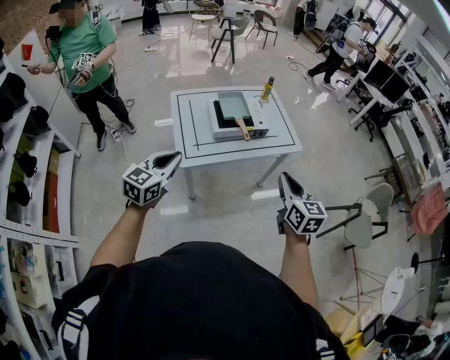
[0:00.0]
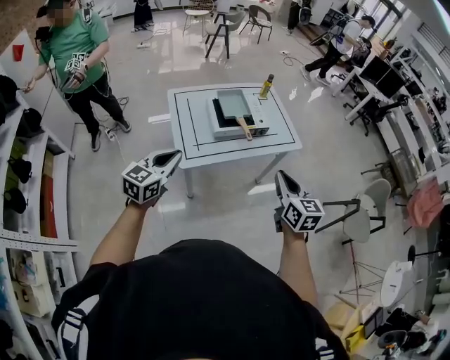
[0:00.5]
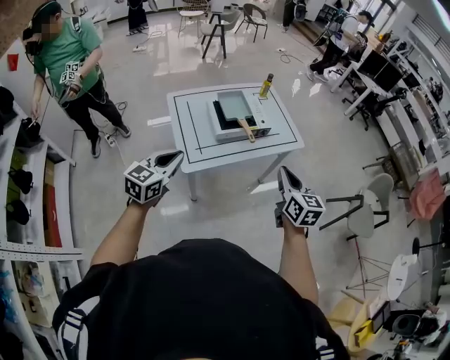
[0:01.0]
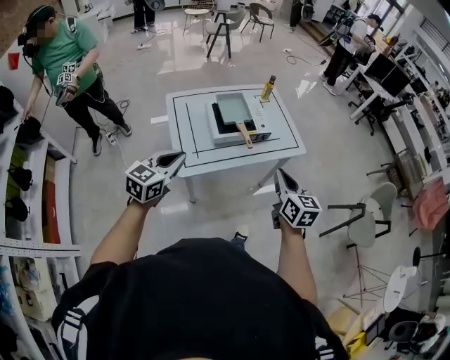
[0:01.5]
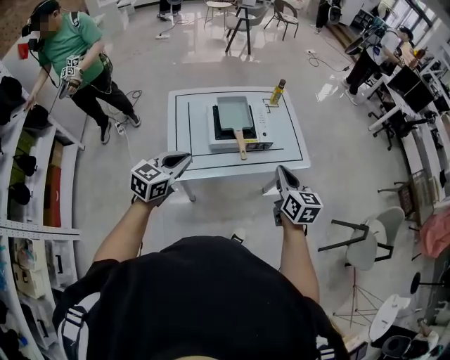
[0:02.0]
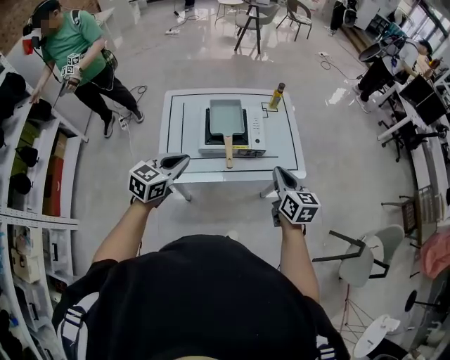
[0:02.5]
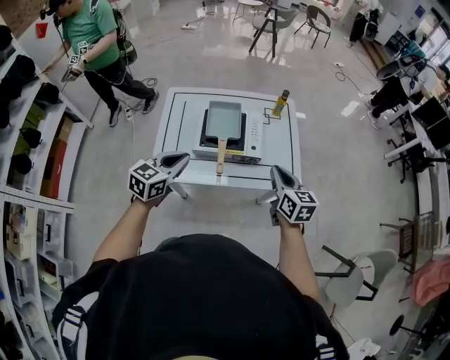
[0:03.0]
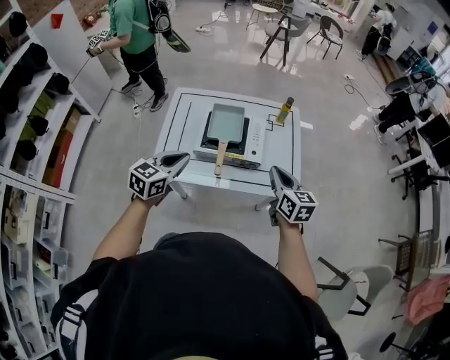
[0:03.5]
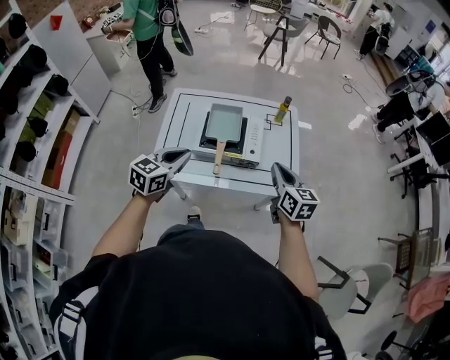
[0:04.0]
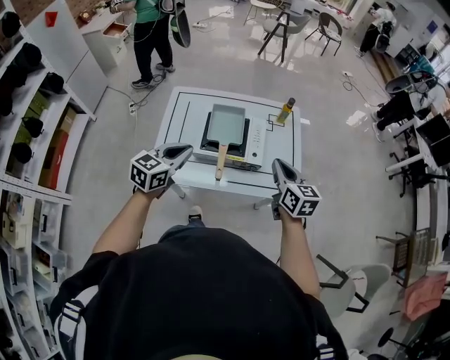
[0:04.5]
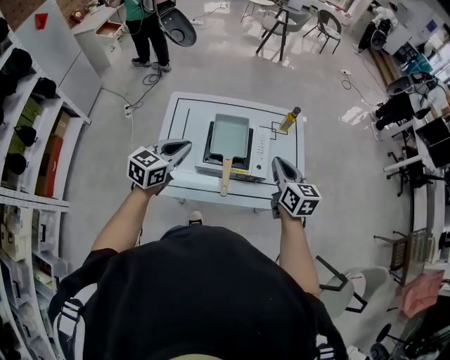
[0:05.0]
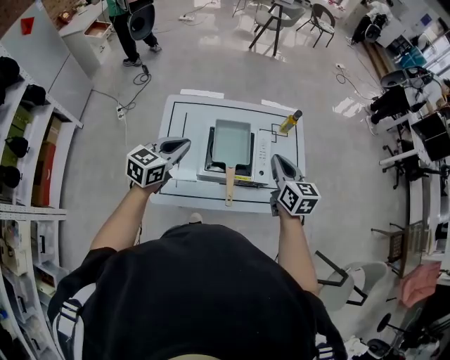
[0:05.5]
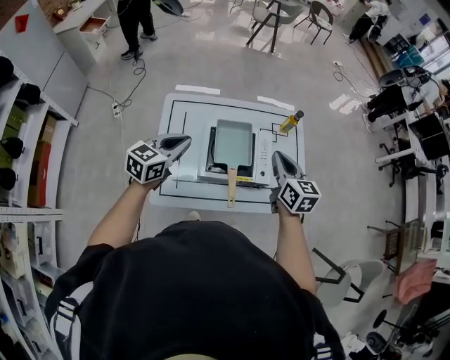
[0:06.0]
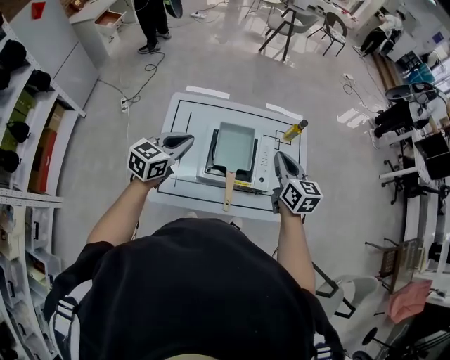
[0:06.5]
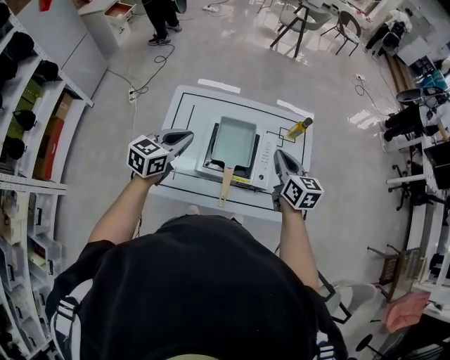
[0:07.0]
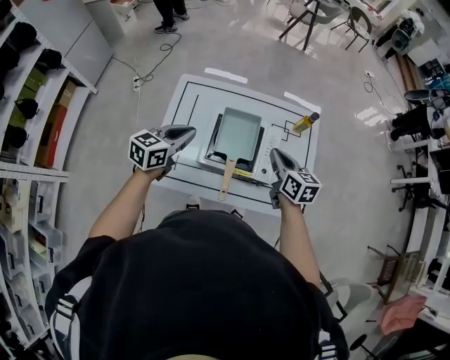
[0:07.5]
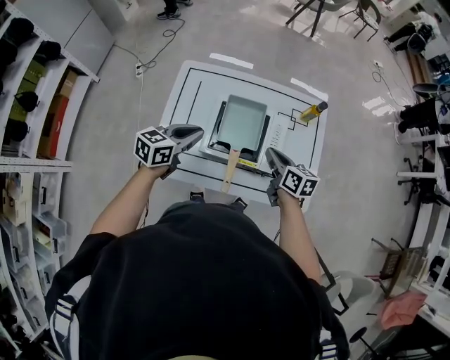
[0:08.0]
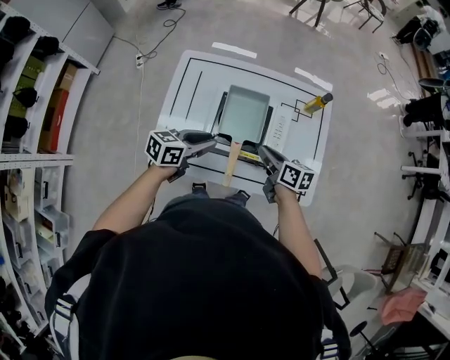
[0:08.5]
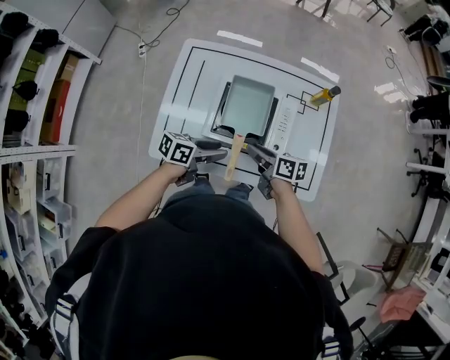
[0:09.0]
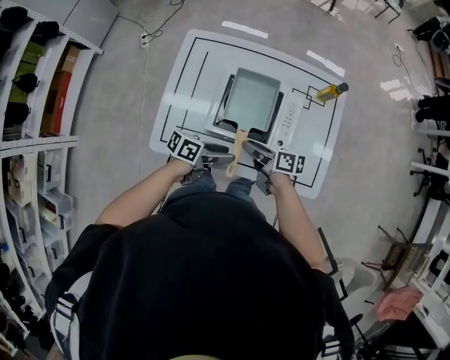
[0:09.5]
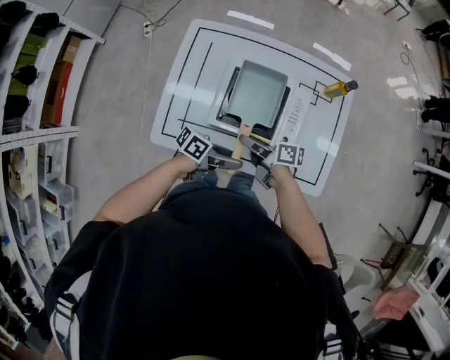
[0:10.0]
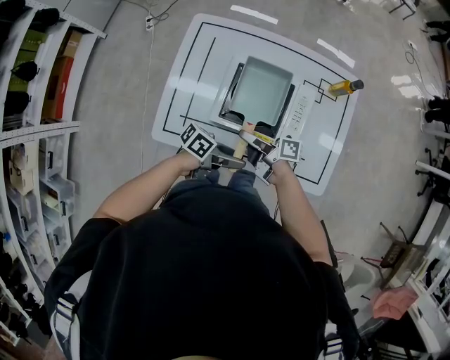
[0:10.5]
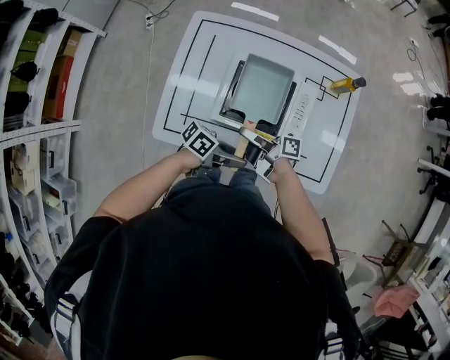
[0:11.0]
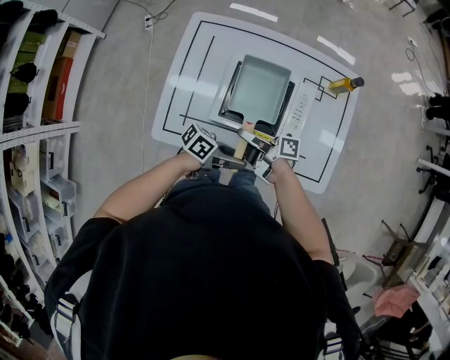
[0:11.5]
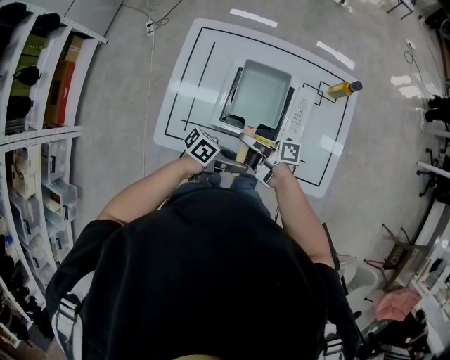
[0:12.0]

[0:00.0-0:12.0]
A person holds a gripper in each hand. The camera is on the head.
0:00.0 to 0:02.0: The grippers both shift forward by about 20 cm.
0:02.0 to 0:04.0: The left gripper goes roughly 15 cm to the right and forward; the right gripper goes roughly 15 cm forward and to the right.
0:04.0 to 0:06.0: Both grippers travel together forward and to the left, about 20 cm.
0:06.0 to 0:08.0: The right gripper moves downward, roughly 15 cm, and swivels about 30 degrees, while the left gripper shifts some 10 cm downward and to the right.
0:08.0 to 0:10.0: The left gripper changes place by approximately 25 cm, swivels roughly 50 degrees, and opens. The right gripper changes place by some 15 cm, swivels some 40 degrees, and opens.
0:10.0 to 0:12.0: The grippers stay close to where they were, moving slightly.

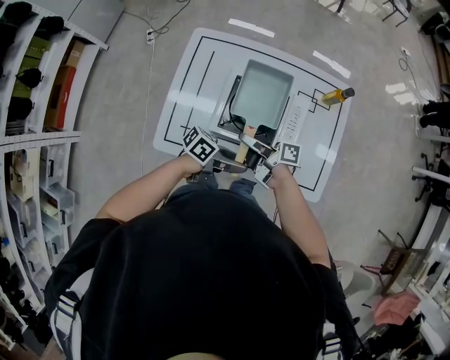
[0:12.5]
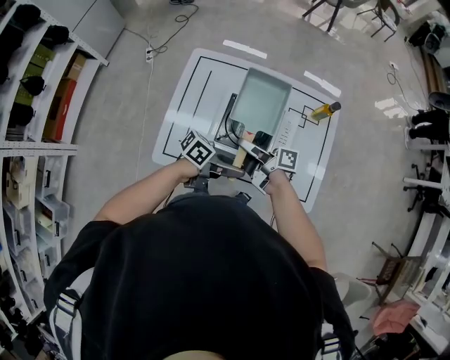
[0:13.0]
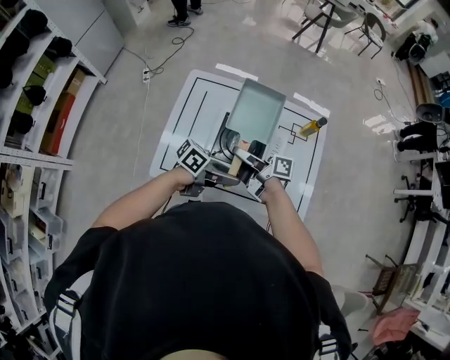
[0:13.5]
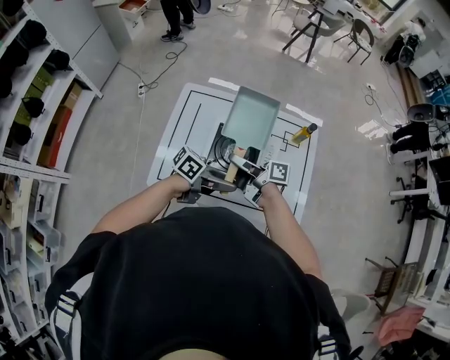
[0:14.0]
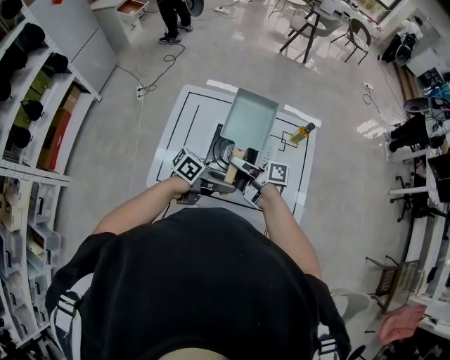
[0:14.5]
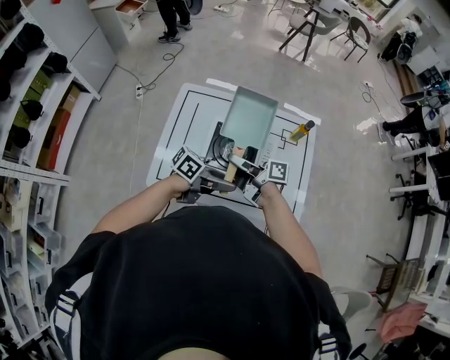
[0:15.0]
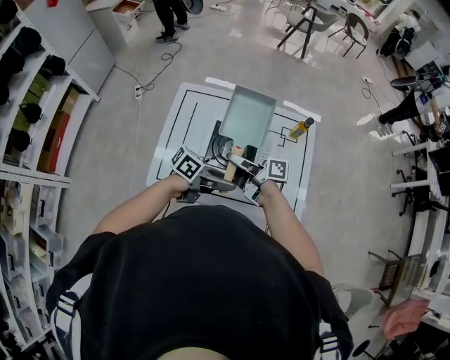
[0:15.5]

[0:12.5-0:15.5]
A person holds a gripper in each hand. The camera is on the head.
0:12.5 to 0:14.0: The grippers both shift upward by about 10 cm.
0:14.0 to 0:15.5: The grippers stay close to where they were, moving slightly.

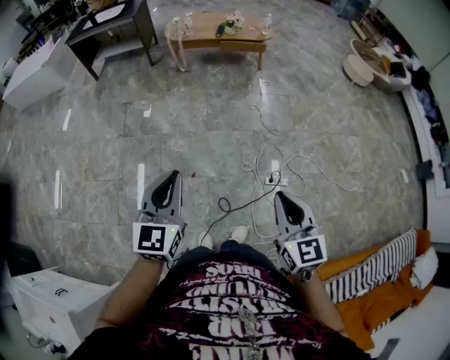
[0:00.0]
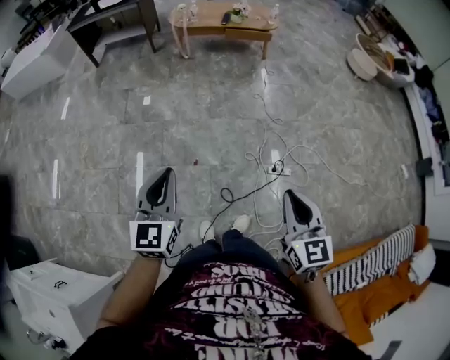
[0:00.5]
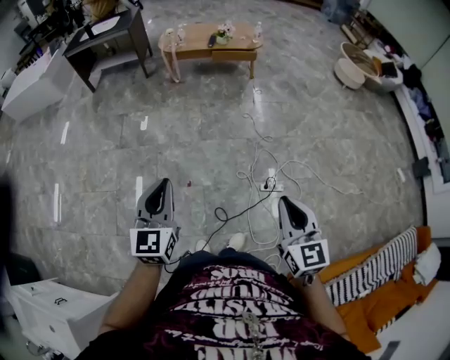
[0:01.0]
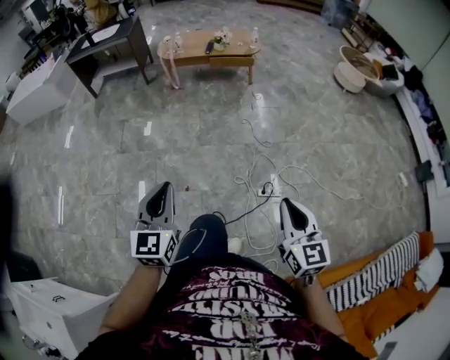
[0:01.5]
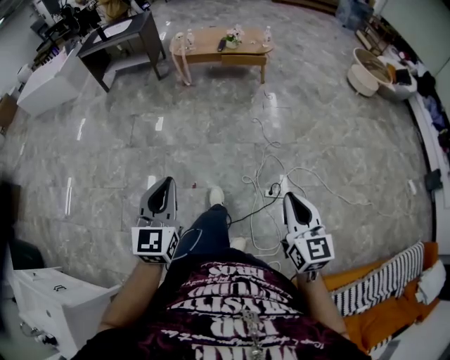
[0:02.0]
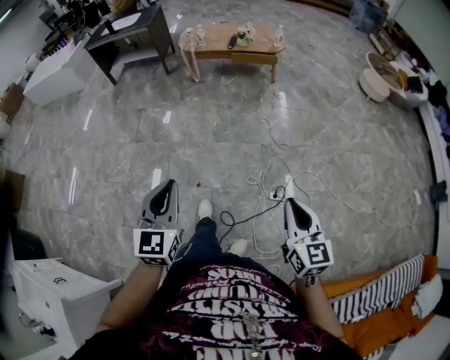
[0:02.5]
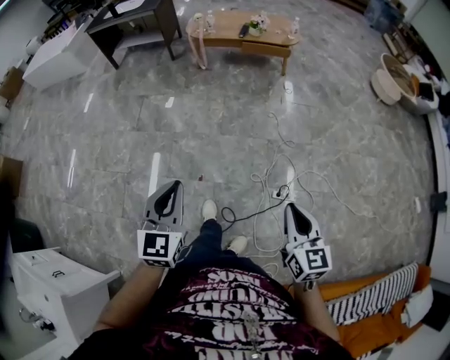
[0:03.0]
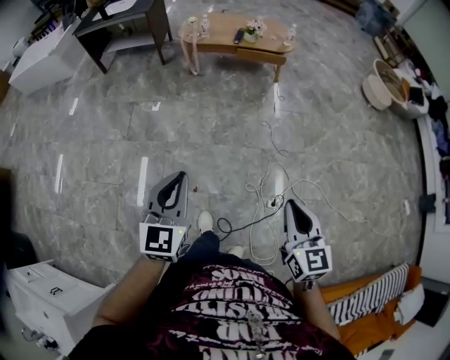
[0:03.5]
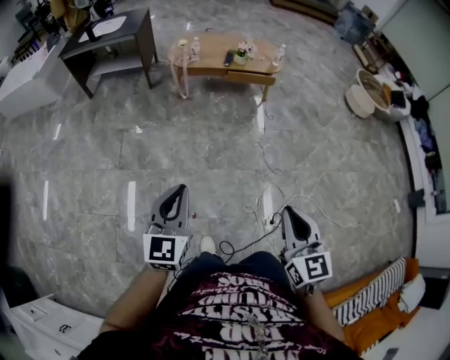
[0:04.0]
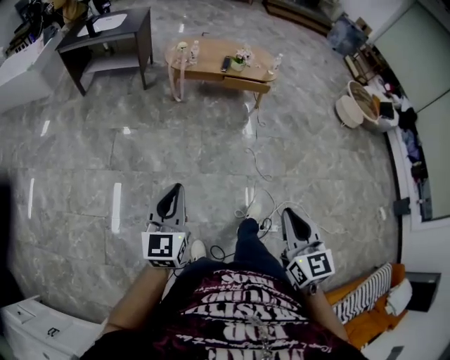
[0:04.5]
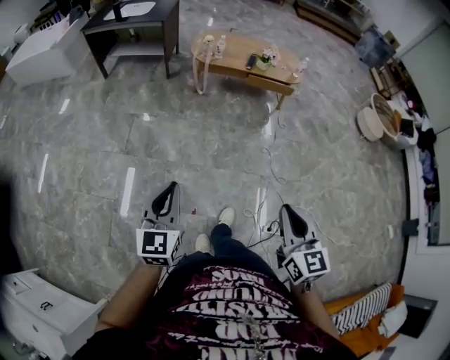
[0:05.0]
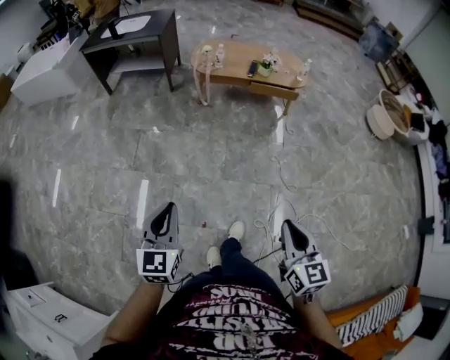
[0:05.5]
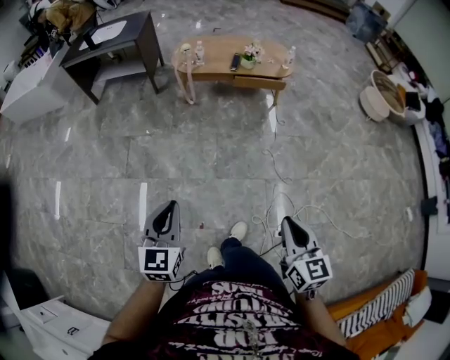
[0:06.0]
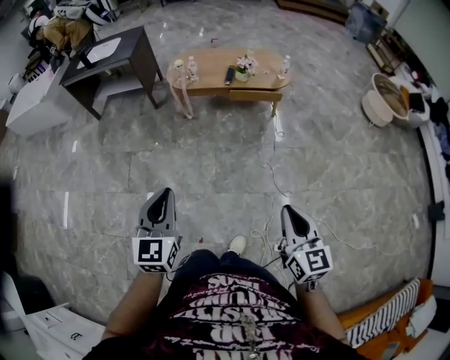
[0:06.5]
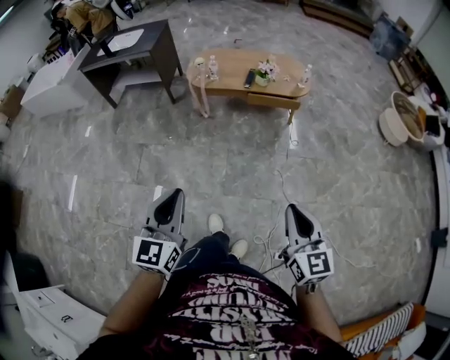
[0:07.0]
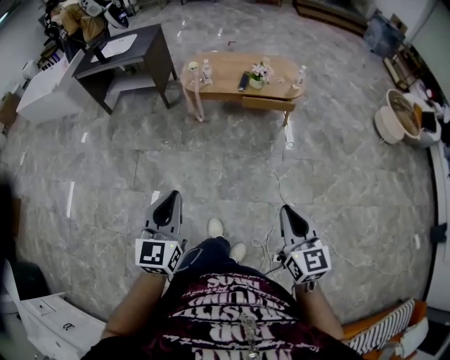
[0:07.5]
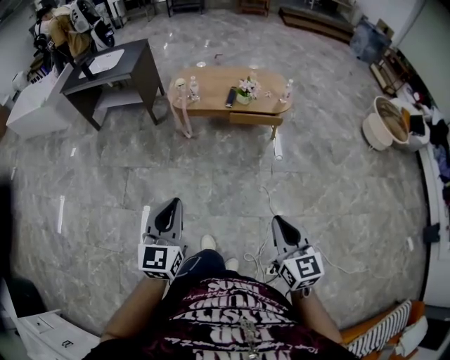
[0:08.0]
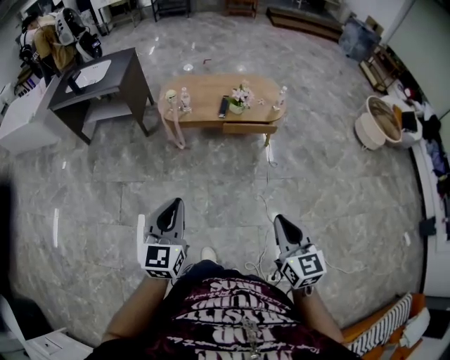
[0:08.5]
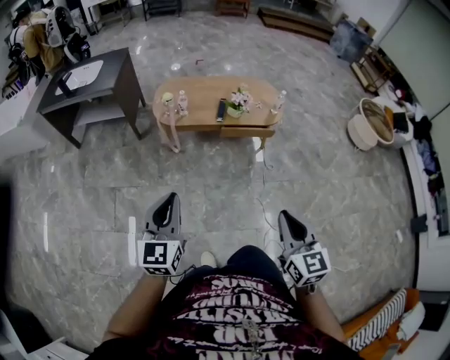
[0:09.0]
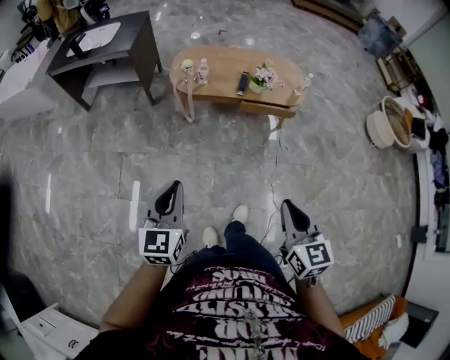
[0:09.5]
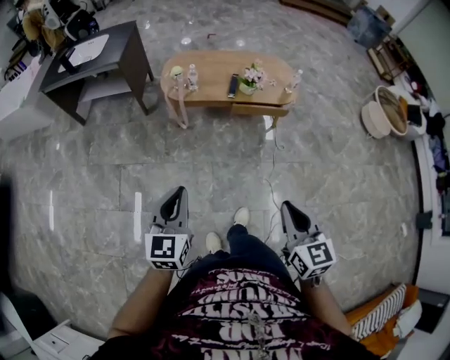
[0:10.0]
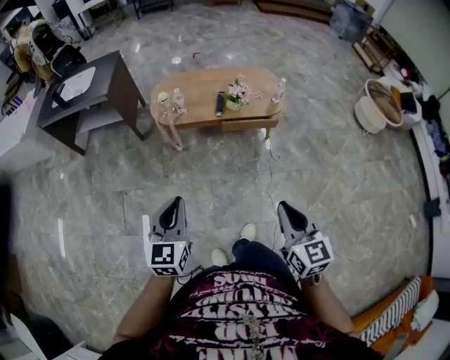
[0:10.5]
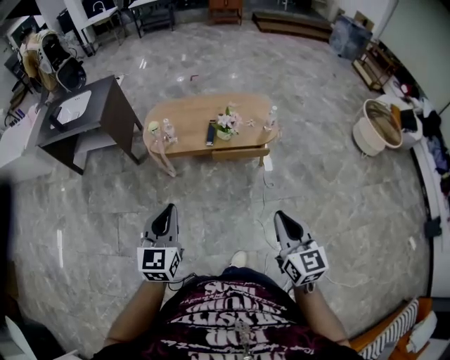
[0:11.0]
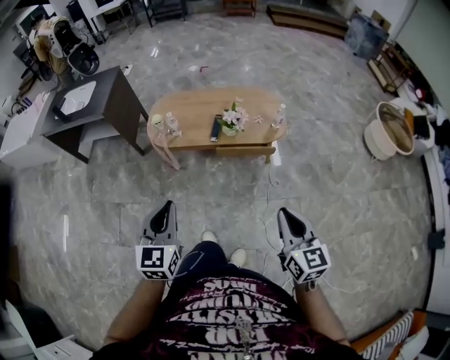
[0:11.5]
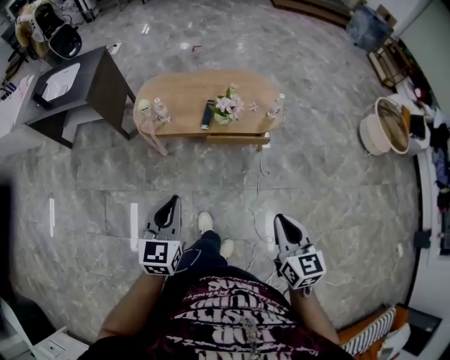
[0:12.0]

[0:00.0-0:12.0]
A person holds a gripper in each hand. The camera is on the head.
0:00.0 to 0:02.0: The right gripper heads to the right, covering some 10 cm. Meanwhile the left gripper is displaced to the right by some 5 cm.
0:02.0 to 0:04.0: Both grippers move forward and to the left, about 30 cm.
0:04.0 to 0:06.0: The right gripper moves forward and downward, some 10 cm. Meanwhile the left gripper heads forward, covering roughly 5 cm.
0:06.0 to 0:08.0: The right gripper shifts some 20 cm forward. Meanwhile the left gripper heads forward and to the right, covering about 20 cm.
0:08.0 to 0:10.0: Both grippers travel together forward and to the left, approximately 15 cm.
0:10.0 to 0:12.0: Both grippers move forward and to the right, approximately 25 cm.
